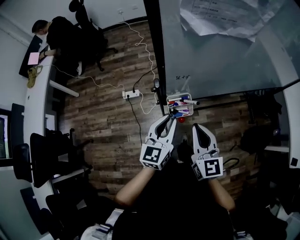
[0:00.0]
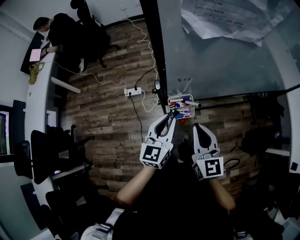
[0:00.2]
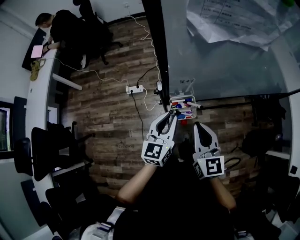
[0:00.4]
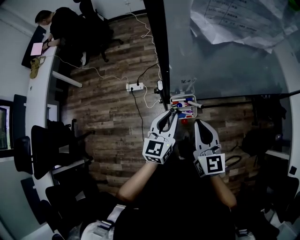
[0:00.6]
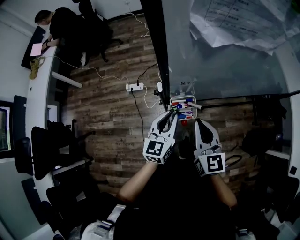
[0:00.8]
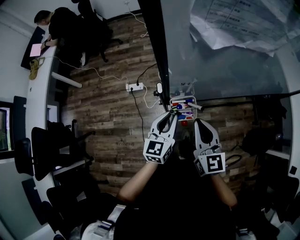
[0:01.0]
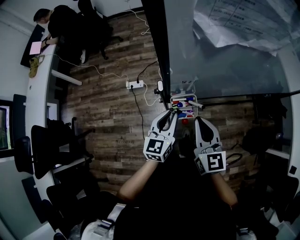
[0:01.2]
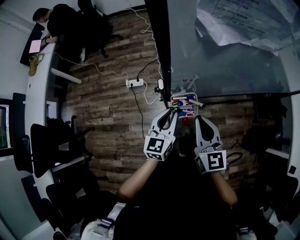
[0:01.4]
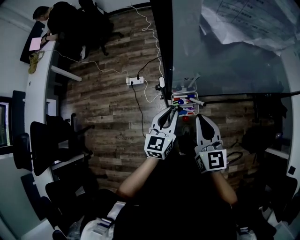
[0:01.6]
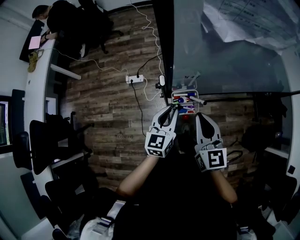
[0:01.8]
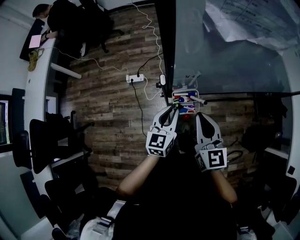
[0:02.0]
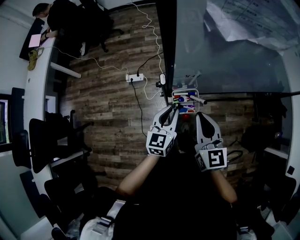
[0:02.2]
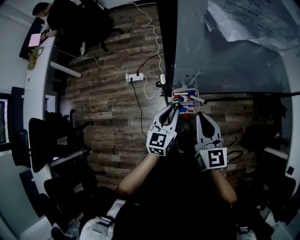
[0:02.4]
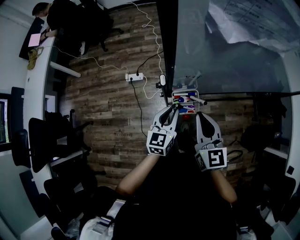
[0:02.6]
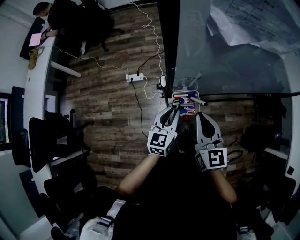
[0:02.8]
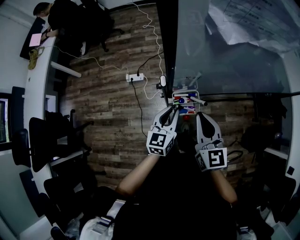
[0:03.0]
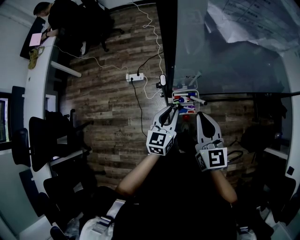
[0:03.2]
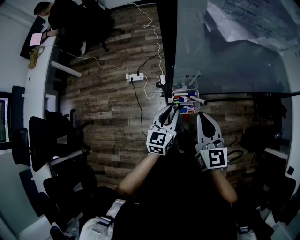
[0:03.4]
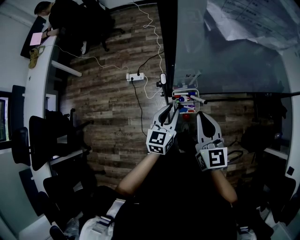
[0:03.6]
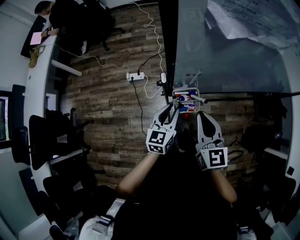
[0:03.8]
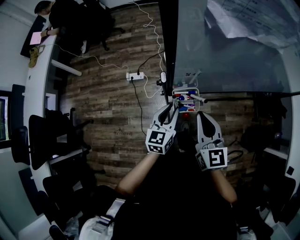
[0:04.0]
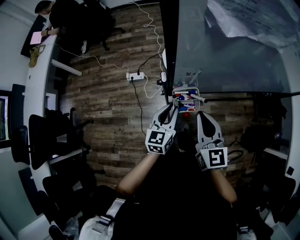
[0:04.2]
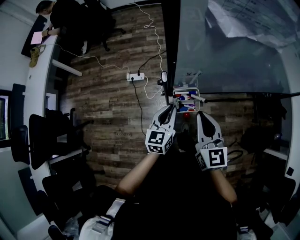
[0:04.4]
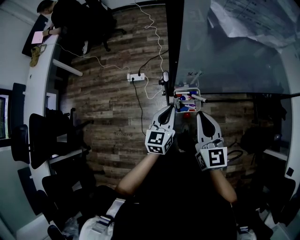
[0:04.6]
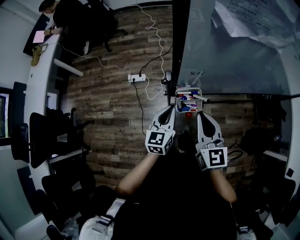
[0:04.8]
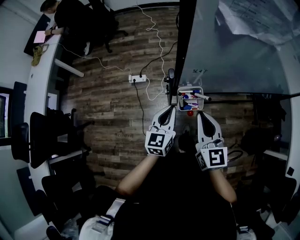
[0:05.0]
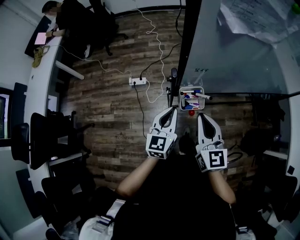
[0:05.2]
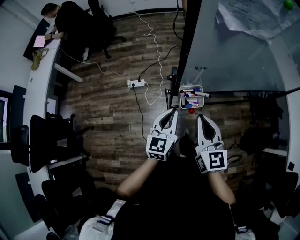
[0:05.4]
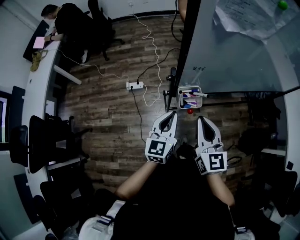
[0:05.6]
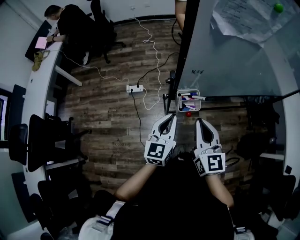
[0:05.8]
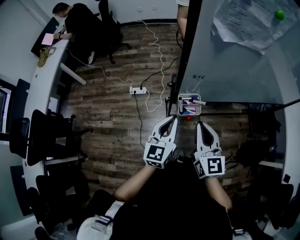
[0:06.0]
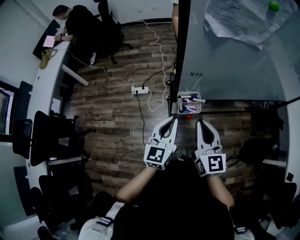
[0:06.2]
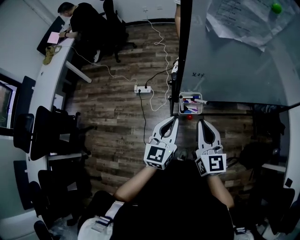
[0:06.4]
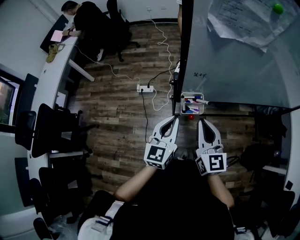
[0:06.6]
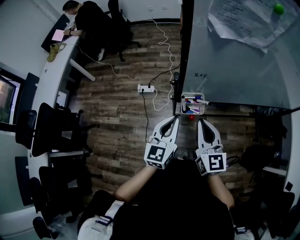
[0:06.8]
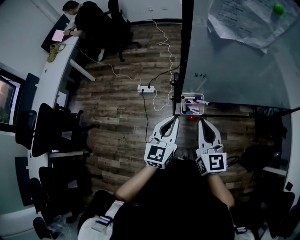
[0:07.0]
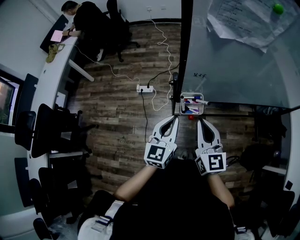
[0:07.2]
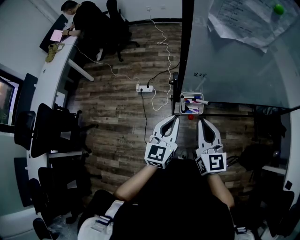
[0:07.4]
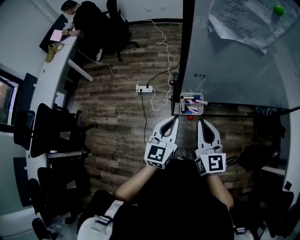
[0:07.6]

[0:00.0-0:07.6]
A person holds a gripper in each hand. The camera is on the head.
0:00.0 to 0:01.6: The right gripper ends up approximately 5 cm from where it was. Meanwhile the left gripper is displaced downward by about 5 cm.
0:01.6 to 0:04.6: The grippers move only a little.
0:04.6 to 0:06.0: The left gripper goes approximately 10 cm upward and backward; the right gripper shifts about 5 cm backward.
0:06.0 to 0:07.6: The grippers move only a little.

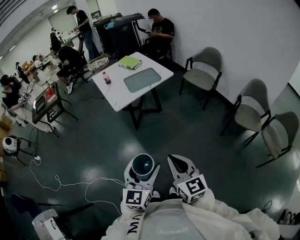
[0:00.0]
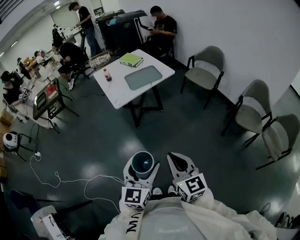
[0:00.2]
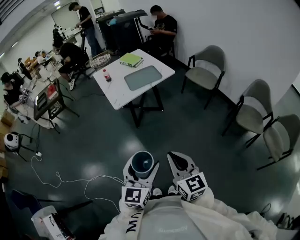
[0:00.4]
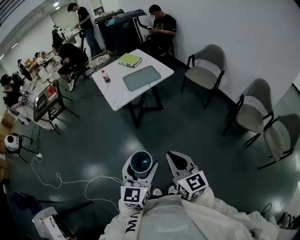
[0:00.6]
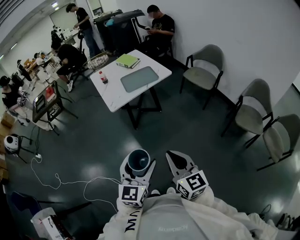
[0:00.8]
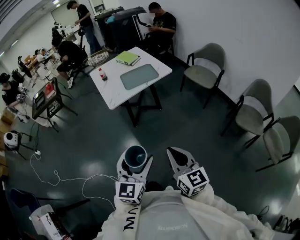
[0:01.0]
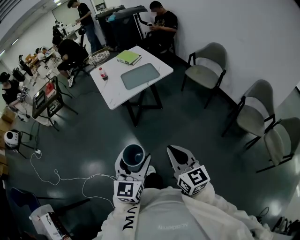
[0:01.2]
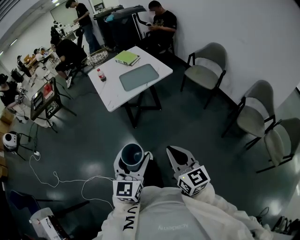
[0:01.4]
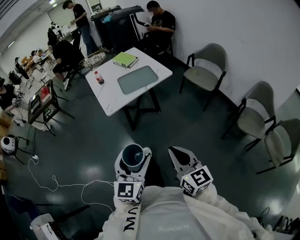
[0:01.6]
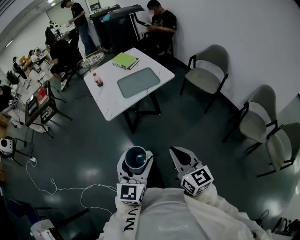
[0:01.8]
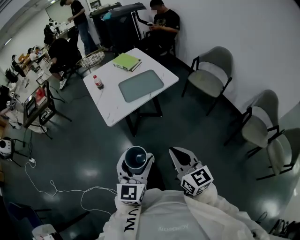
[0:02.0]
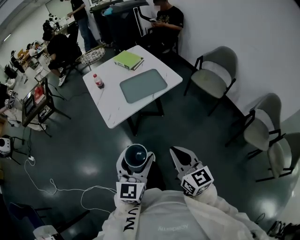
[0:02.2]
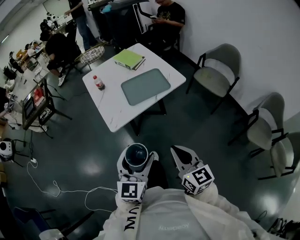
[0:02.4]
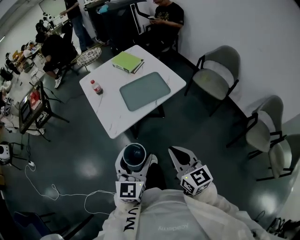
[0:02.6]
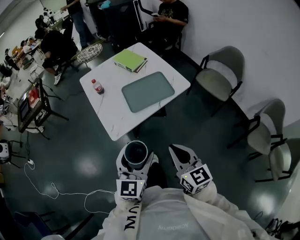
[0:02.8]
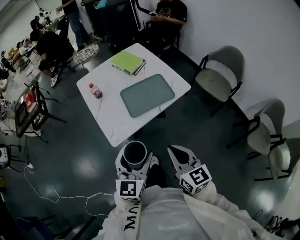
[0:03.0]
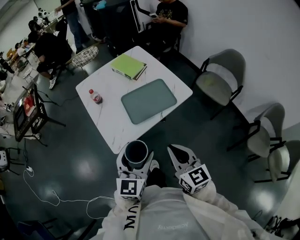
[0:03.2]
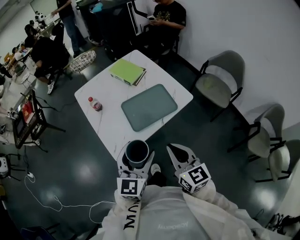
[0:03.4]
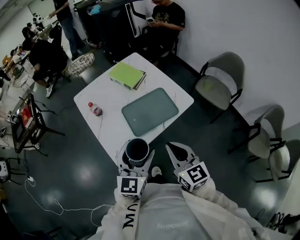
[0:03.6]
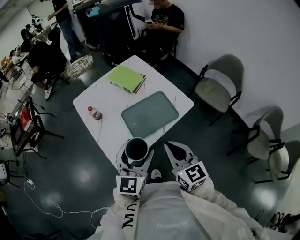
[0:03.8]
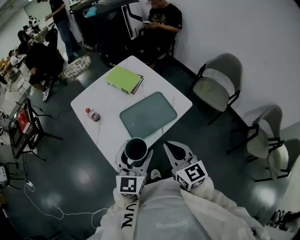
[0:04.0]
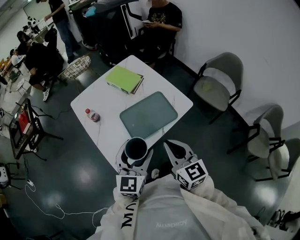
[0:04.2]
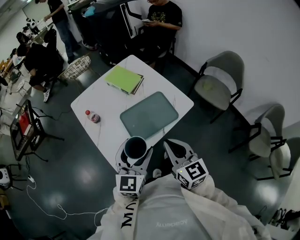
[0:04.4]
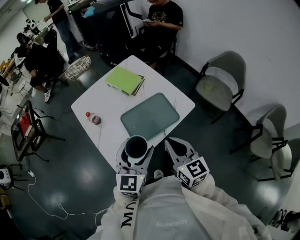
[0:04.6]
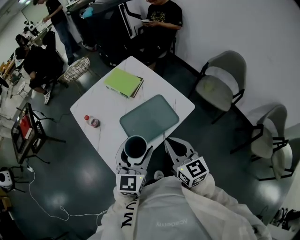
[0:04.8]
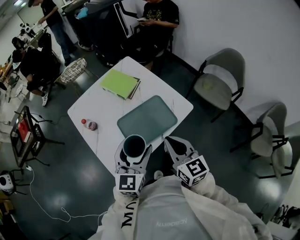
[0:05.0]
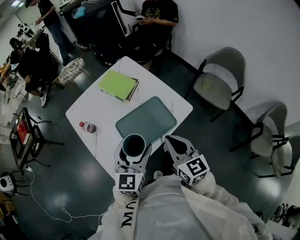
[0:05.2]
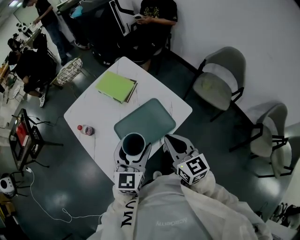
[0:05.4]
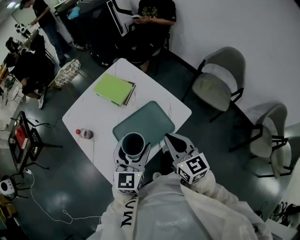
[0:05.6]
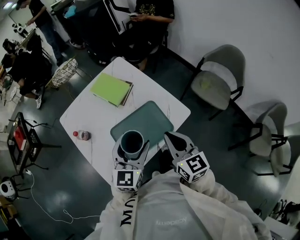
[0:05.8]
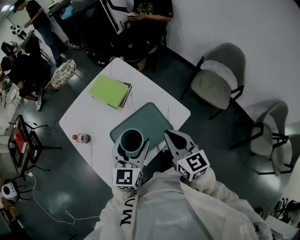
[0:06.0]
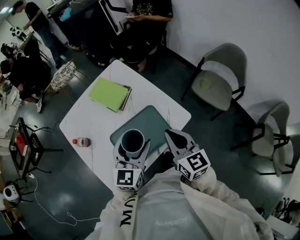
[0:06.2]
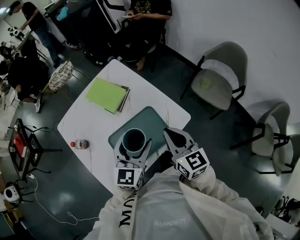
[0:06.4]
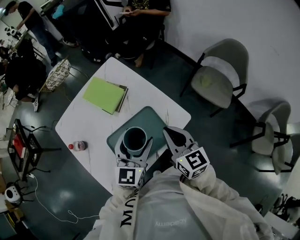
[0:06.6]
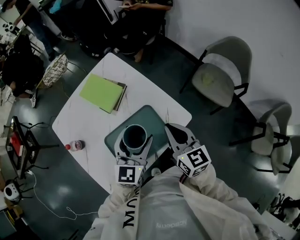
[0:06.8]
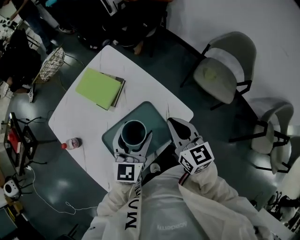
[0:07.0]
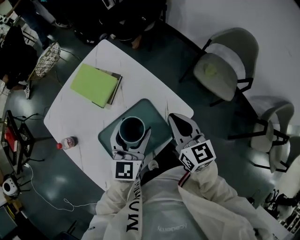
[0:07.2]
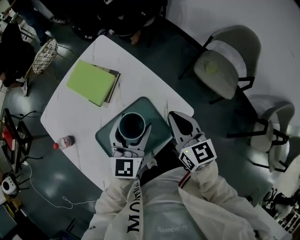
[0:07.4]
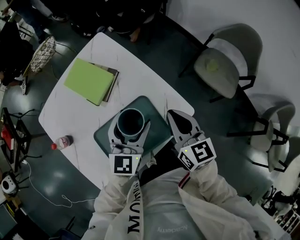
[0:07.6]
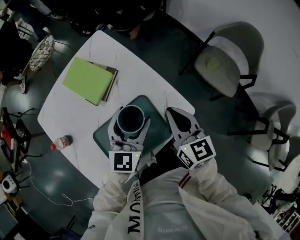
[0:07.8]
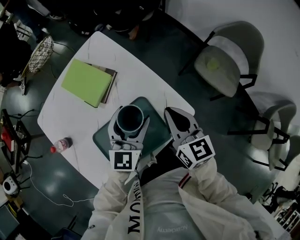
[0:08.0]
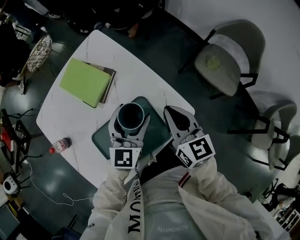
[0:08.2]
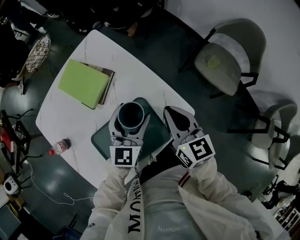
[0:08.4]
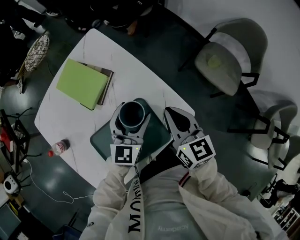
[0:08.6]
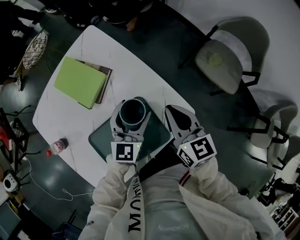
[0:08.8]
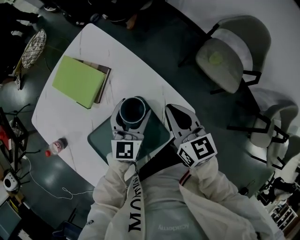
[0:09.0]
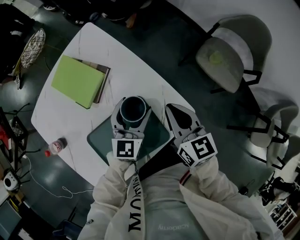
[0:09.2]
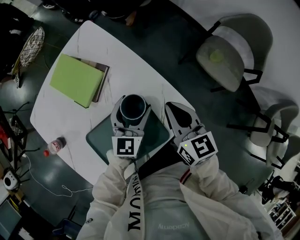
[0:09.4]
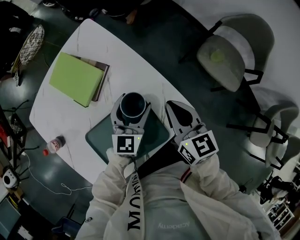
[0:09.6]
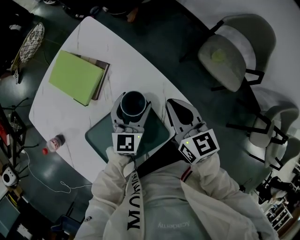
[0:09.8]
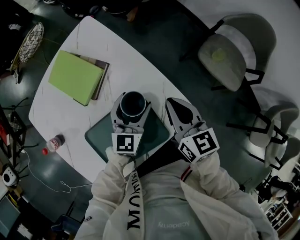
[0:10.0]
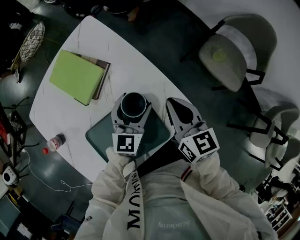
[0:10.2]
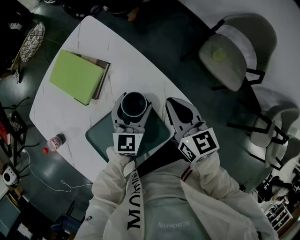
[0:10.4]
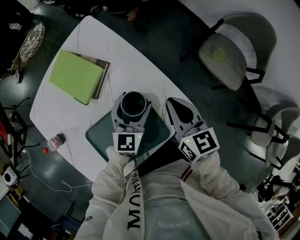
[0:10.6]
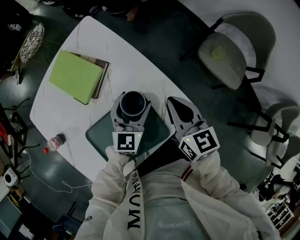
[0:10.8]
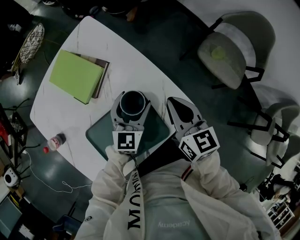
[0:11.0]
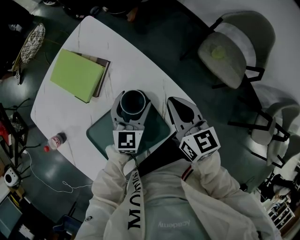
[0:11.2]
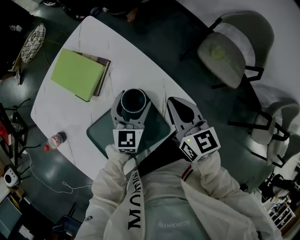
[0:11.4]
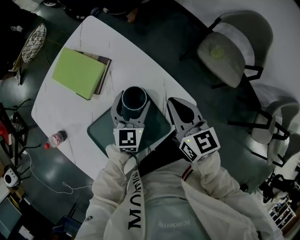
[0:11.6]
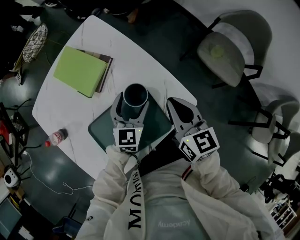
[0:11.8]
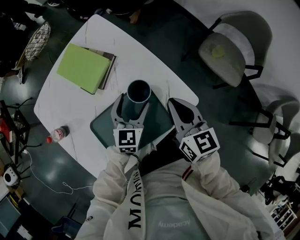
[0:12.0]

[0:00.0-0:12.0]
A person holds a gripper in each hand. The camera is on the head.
0:00.0 to 0:01.6: The right gripper goes approximately 15 cm forward and to the right. Meanwhile the left gripper goes roughly 15 cm forward.
0:01.6 to 0:03.0: The grippers both shift forward by roughly 35 cm.
0:03.0 to 0:04.4: The grippers both shift forward by about 20 cm.
0:04.4 to 0:06.0: The left gripper heads forward, covering roughly 15 cm; the right gripper shifts approximately 20 cm forward and to the right.
0:06.0 to 0:07.6: Both grippers travel together forward and downward, about 15 cm.
0:07.6 to 0:09.0: The right gripper shifts by approximately 5 cm. Meanwhile the left gripper goes about 10 cm downward and forward.
0:09.0 to 0:10.4: The grippers move only a little.
0:10.4 to 0:12.0: The right gripper changes place by approximately 5 cm; the left gripper shifts by approximately 5 cm.

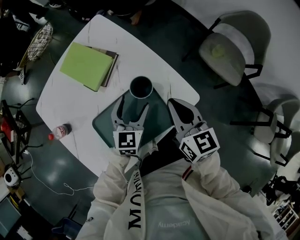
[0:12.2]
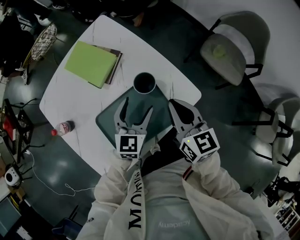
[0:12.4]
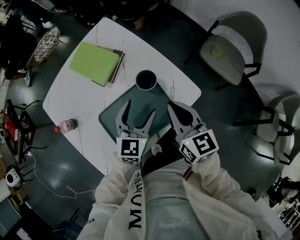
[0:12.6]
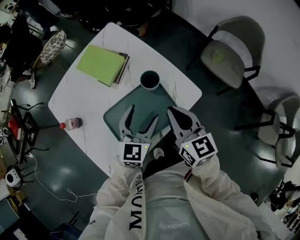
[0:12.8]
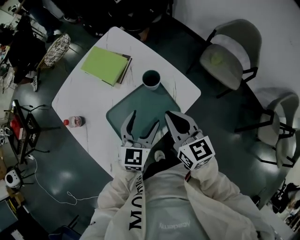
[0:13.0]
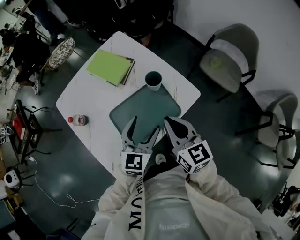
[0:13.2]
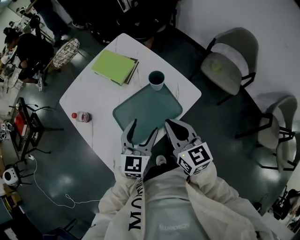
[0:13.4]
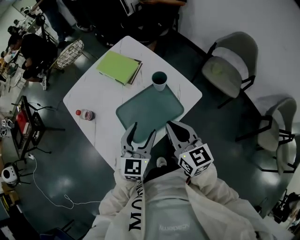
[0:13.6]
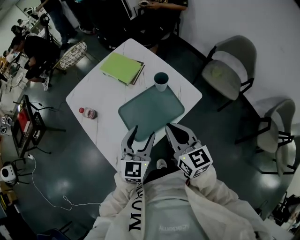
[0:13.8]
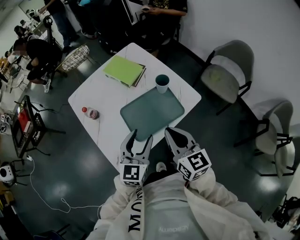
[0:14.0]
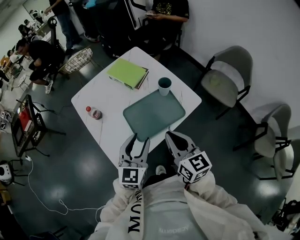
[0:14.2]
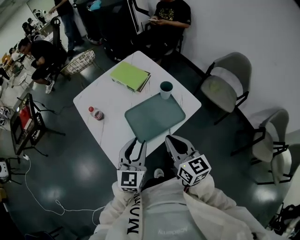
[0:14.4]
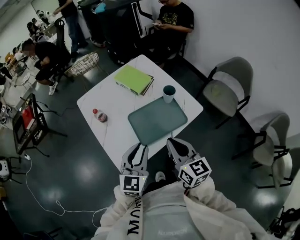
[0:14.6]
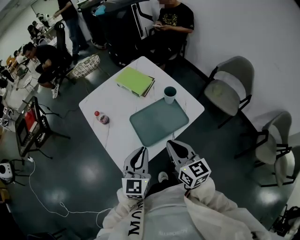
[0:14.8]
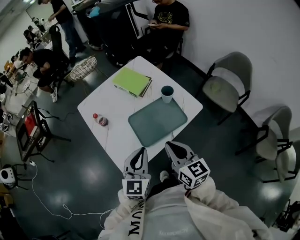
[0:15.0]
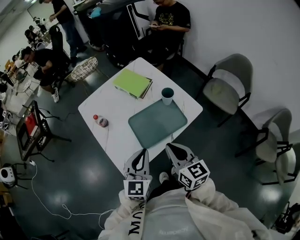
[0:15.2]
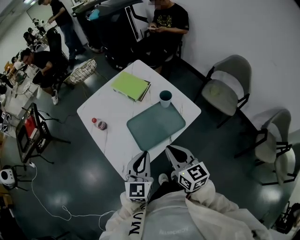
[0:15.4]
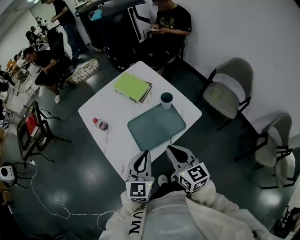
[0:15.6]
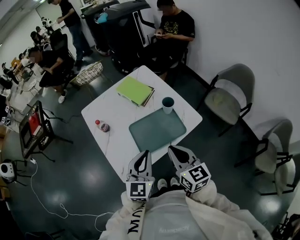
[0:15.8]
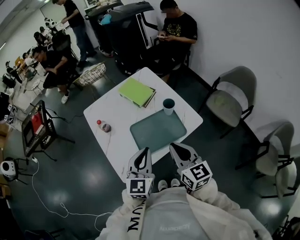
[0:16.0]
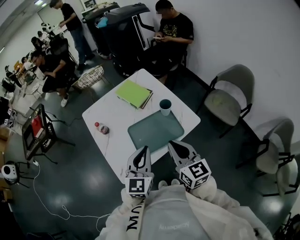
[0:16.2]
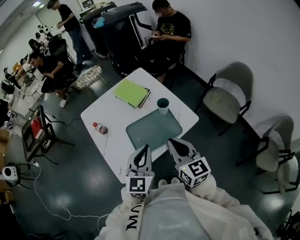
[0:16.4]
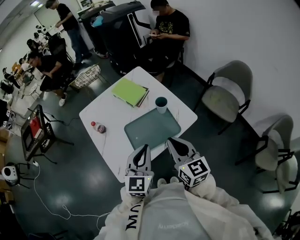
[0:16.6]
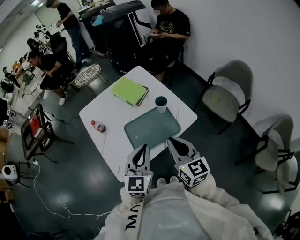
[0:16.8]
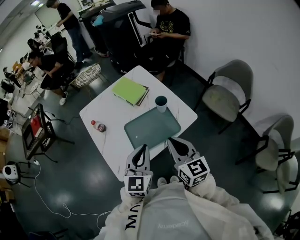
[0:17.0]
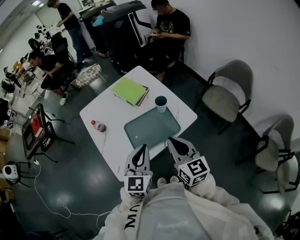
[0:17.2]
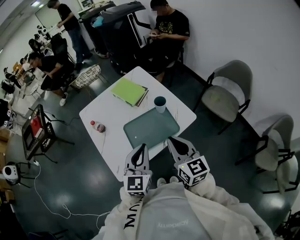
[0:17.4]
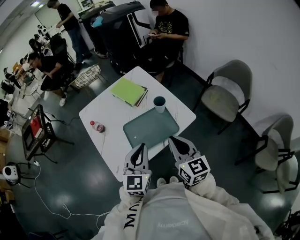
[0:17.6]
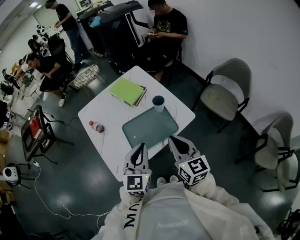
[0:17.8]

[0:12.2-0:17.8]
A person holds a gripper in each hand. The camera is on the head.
0:12.2 to 0:13.6: The left gripper is displaced backward and upward by about 25 cm; the right gripper moves backward, upward and to the left, some 20 cm.
0:13.6 to 0:15.0: The left gripper travels backward, to the left and upward by roughly 15 cm, and closes up. The right gripper travels backward and to the left by some 10 cm.
0:15.0 to 0:16.4: The grippers both shift to the right by roughly 5 cm.
0:16.4 to 0:17.8: The grippers move only a little.
